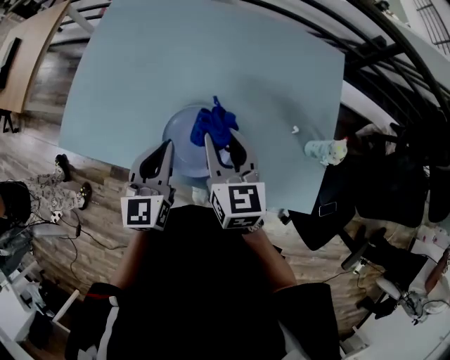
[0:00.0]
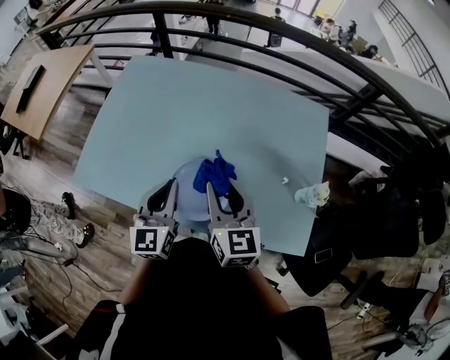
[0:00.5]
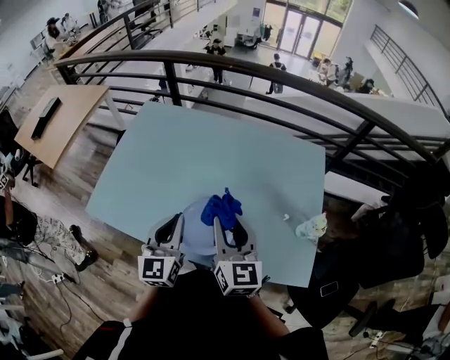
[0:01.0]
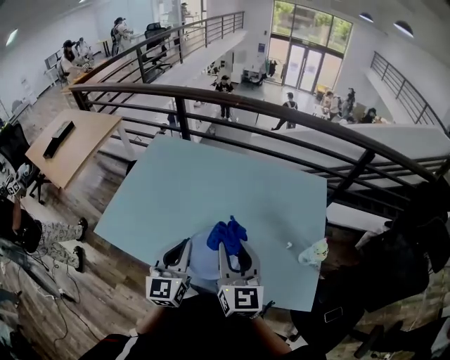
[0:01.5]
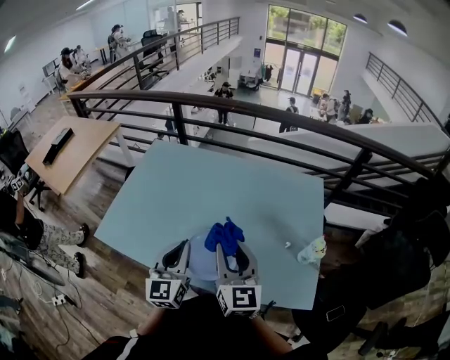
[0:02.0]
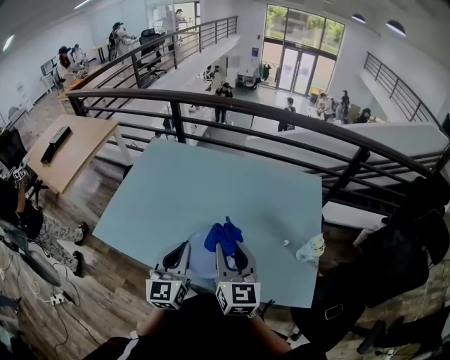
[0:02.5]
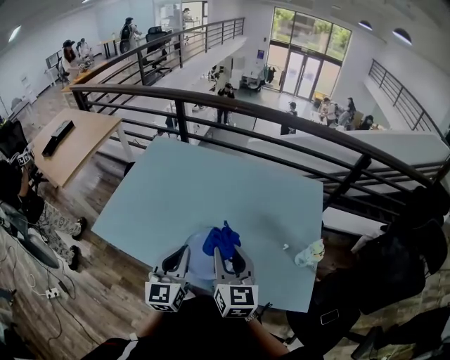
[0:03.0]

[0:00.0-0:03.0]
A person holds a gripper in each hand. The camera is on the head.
0:00.0 to 0:01.5: The right gripper is displaced upward and backward by about 15 cm, and turns by about 20 degrees. The left gripper moves upward, about 10 cm.
0:01.5 to 0:03.0: The grippers move only a little.

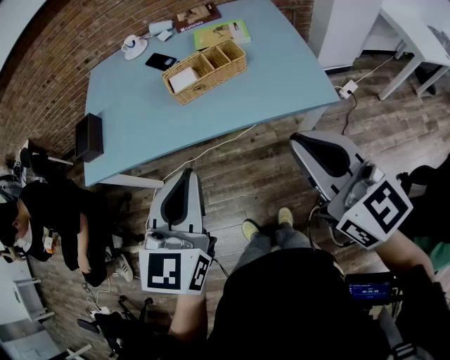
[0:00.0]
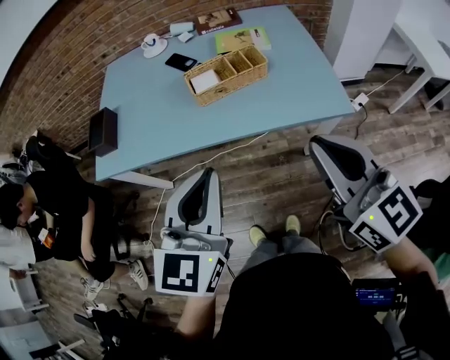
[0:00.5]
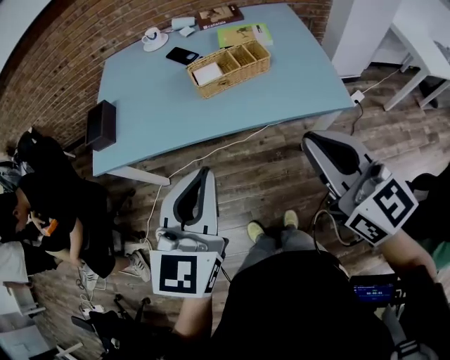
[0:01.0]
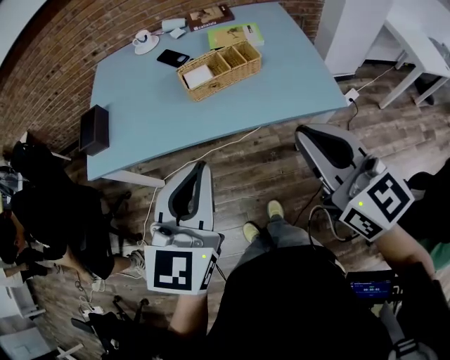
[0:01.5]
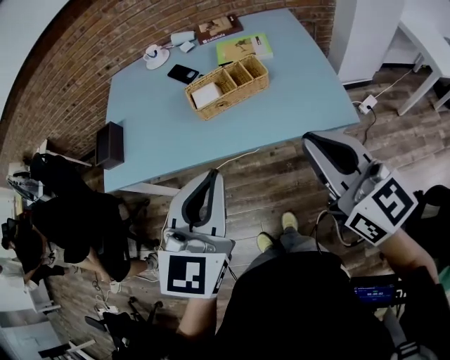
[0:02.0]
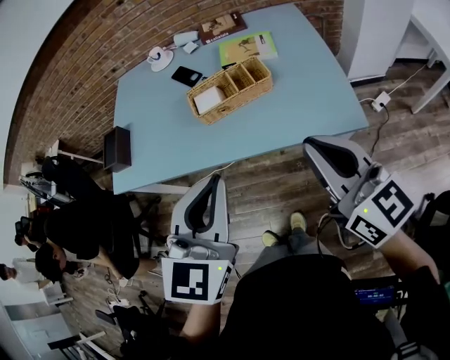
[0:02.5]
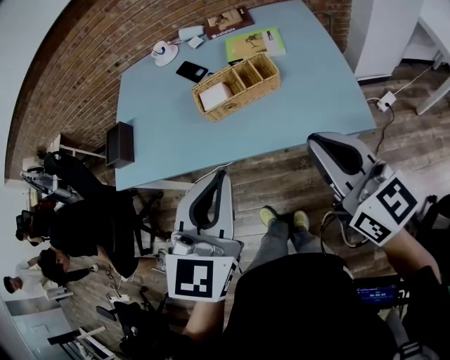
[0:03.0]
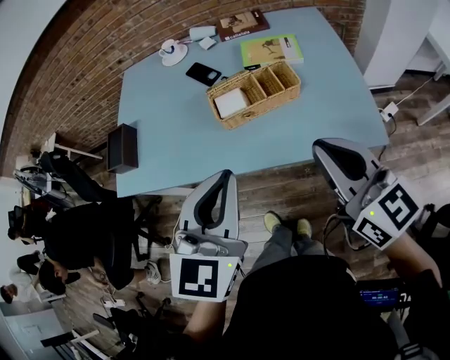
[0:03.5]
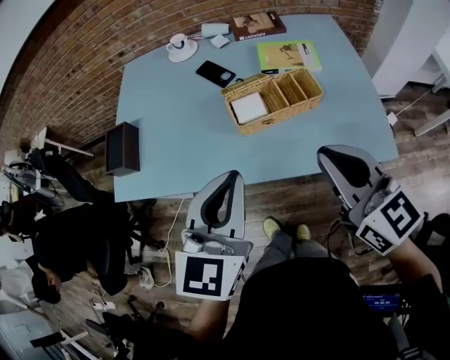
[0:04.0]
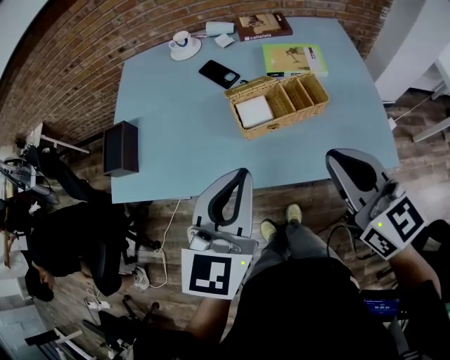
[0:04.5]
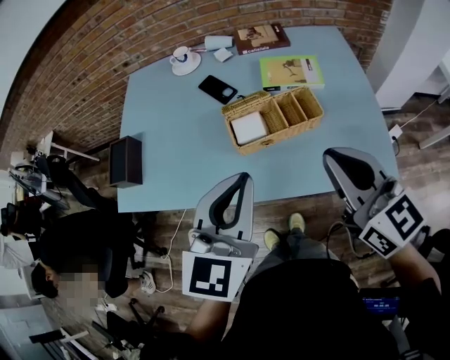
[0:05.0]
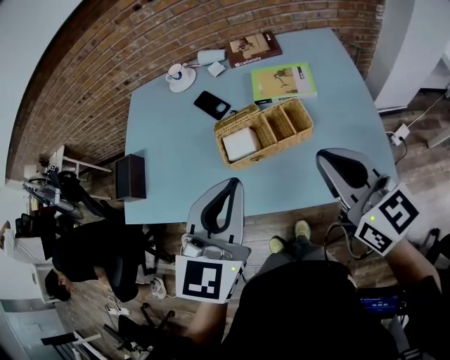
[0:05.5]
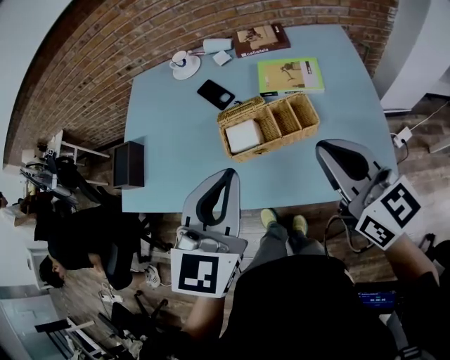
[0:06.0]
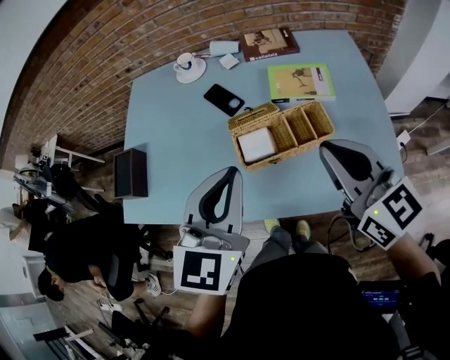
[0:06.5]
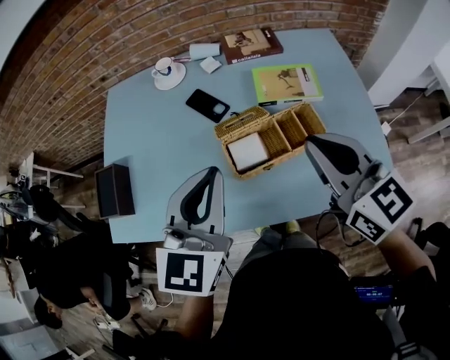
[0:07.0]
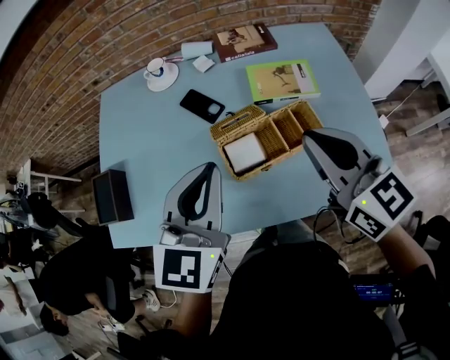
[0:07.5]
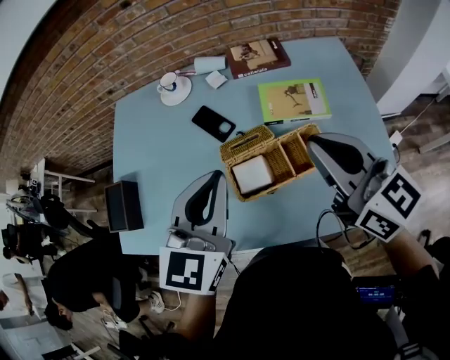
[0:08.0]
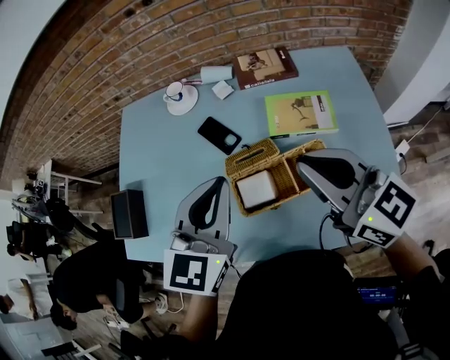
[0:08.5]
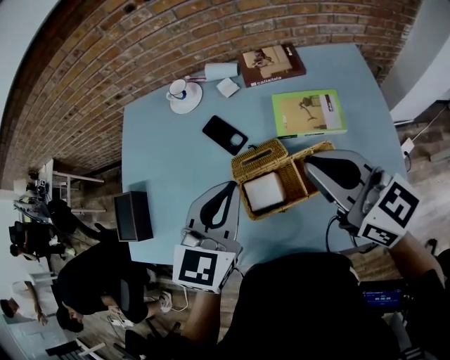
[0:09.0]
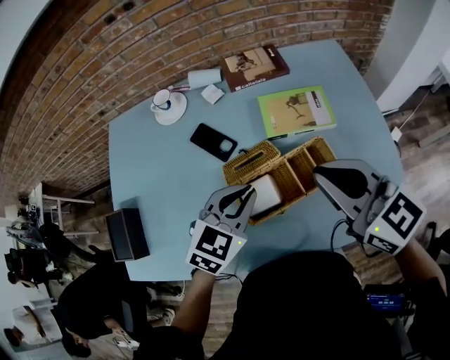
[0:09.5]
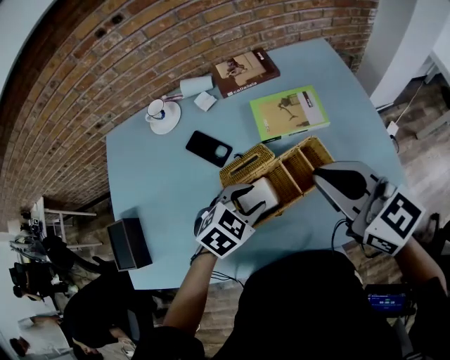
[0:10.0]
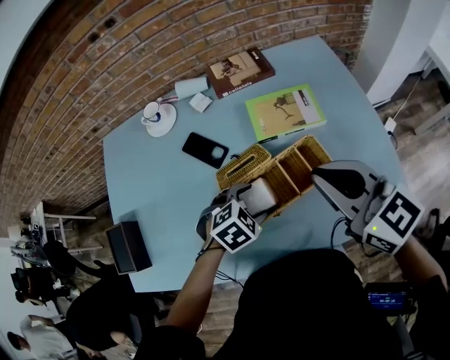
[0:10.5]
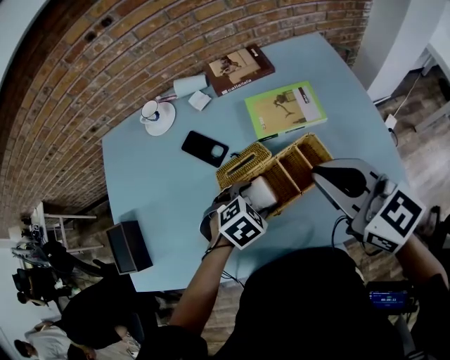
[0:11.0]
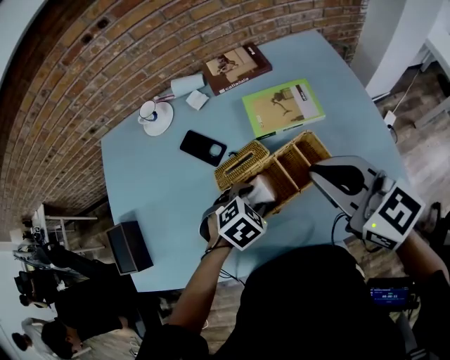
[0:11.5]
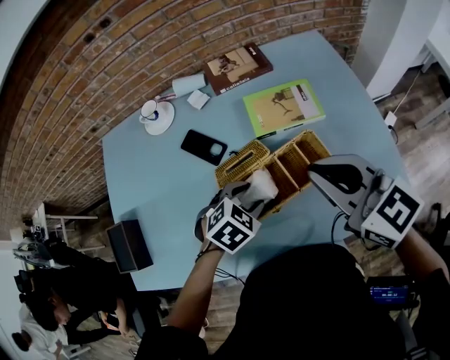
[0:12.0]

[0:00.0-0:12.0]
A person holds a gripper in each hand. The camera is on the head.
0:00.0 to 0:02.0: The right gripper goes approximately 5 cm forward; the left gripper moves approximately 5 cm to the left and comes back.
0:02.0 to 0:04.0: Both grippers move forward and to the left, about 15 cm.
0:04.0 to 0:06.0: Both grippers travel together to the right and forward, some 10 cm.
0:06.0 to 0:08.0: Both grippers travel together forward, some 15 cm.
0:08.0 to 0:10.0: The left gripper heads downward, covering some 20 cm, points its fingers about 40 degrees further downward, and opens its fingers, while the right gripper goes some 5 cm downward.

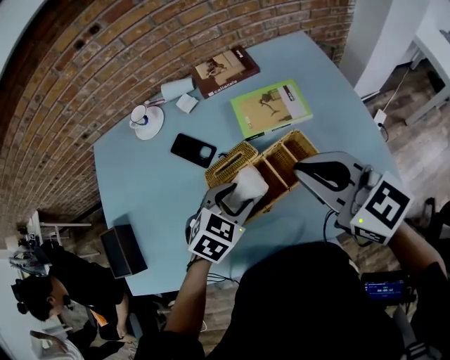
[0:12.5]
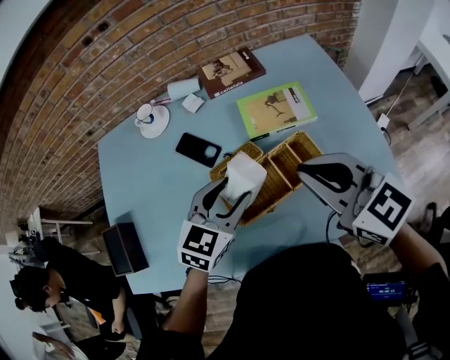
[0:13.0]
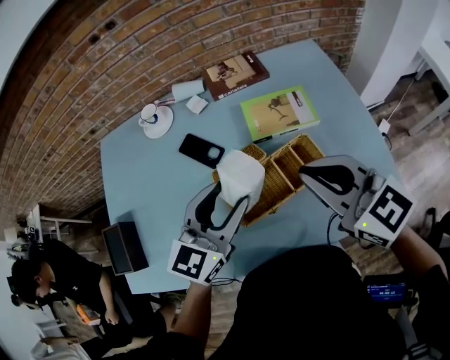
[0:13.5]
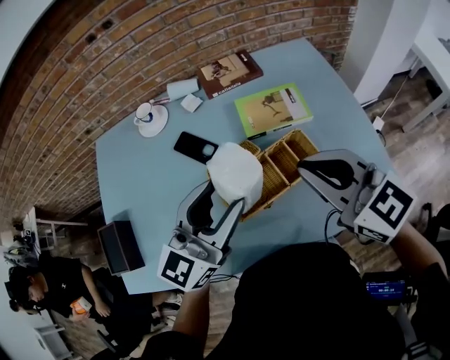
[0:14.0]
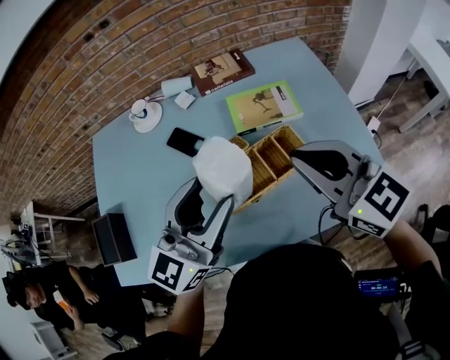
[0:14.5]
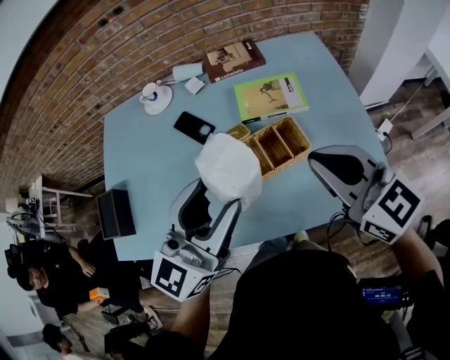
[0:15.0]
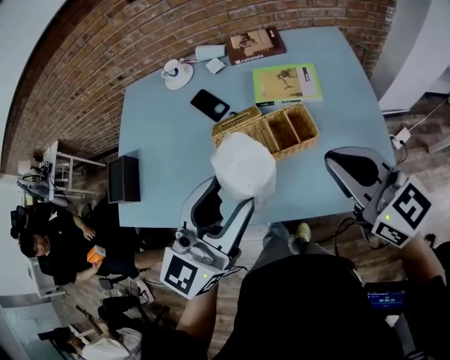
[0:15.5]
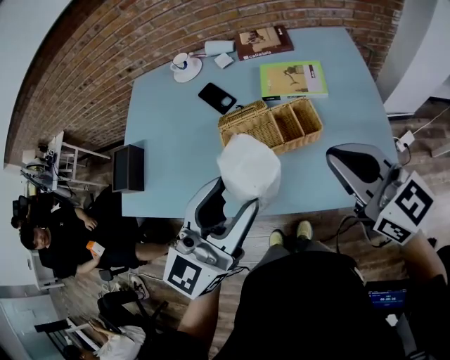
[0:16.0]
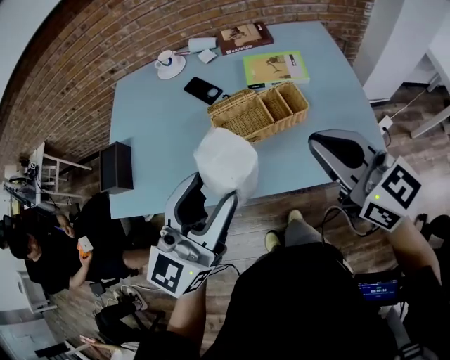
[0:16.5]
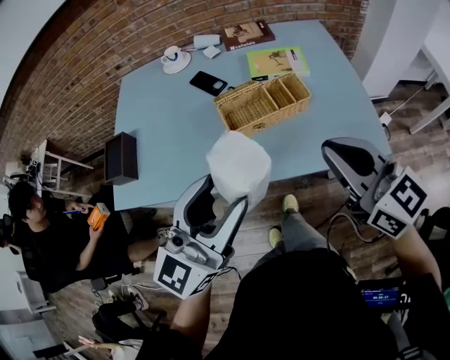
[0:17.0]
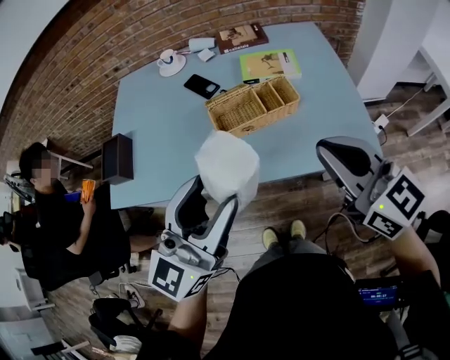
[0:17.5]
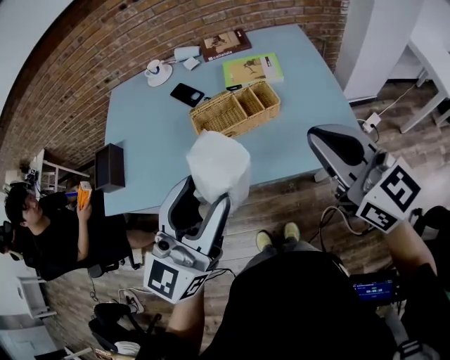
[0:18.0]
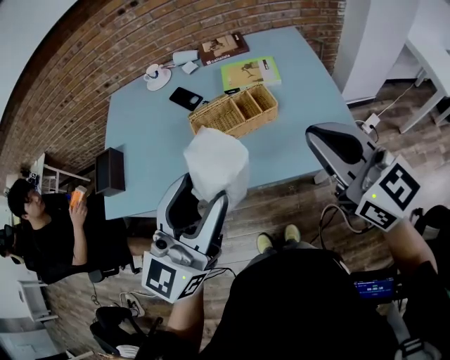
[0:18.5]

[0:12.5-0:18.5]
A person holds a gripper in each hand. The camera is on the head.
0:12.5 to 0:14.5: The left gripper shifts some 20 cm upward, and angles its fingers upward, by some 60 degrees.
0:14.5 to 0:16.5: The two grippers go roughly 15 cm backward.
0:16.5 to 0:18.5: The right gripper travels to the right and backward by approximately 10 cm; the left gripper moves backward and to the right, some 10 cm.

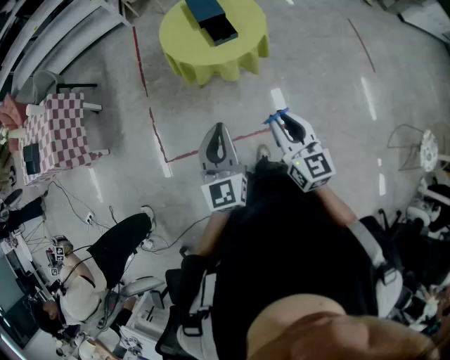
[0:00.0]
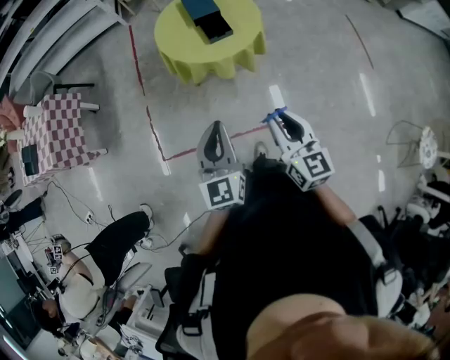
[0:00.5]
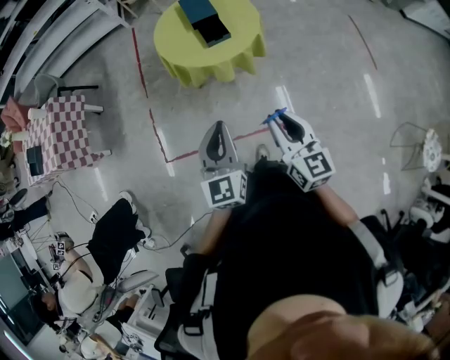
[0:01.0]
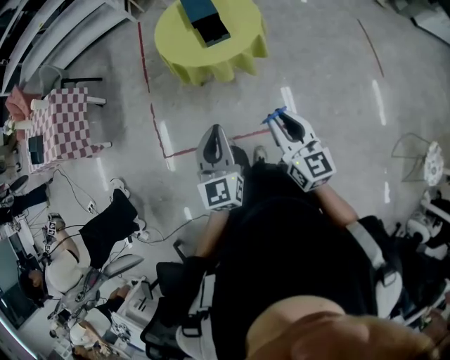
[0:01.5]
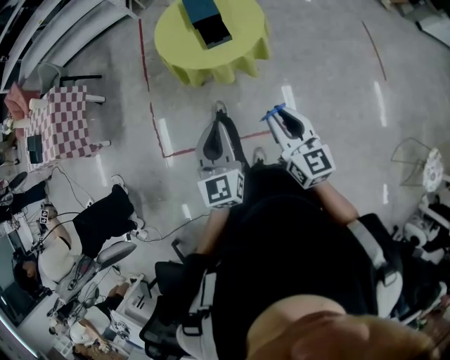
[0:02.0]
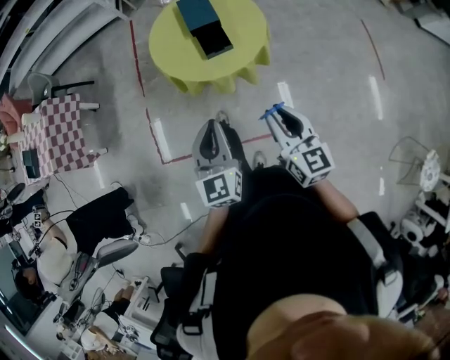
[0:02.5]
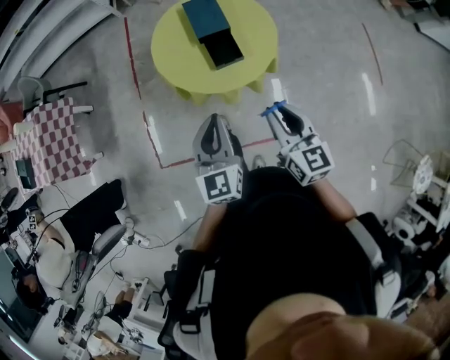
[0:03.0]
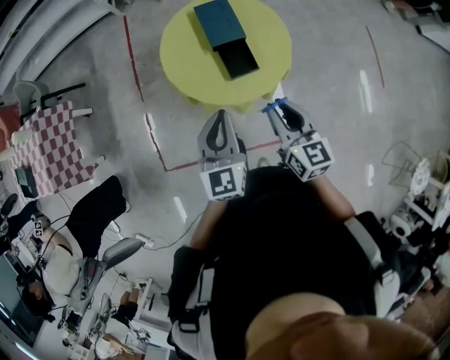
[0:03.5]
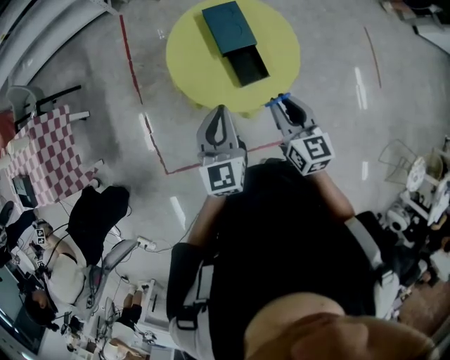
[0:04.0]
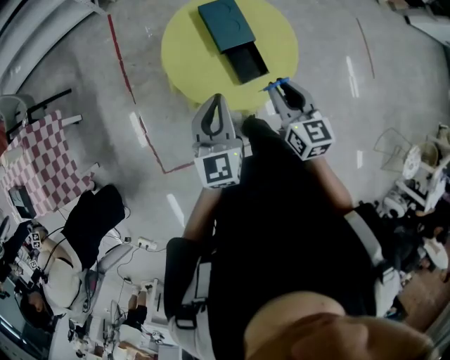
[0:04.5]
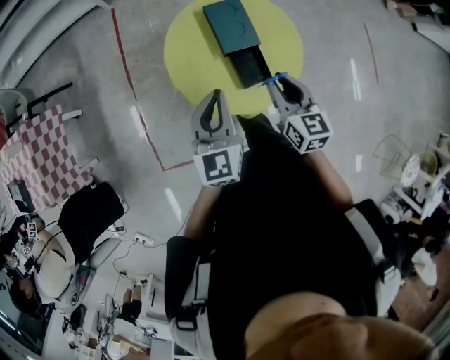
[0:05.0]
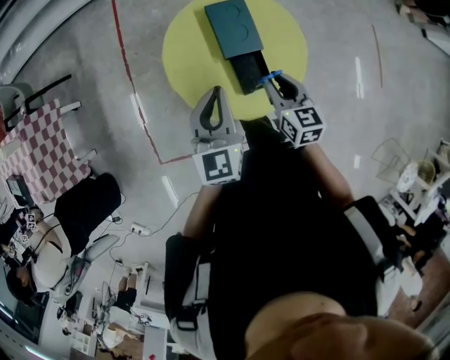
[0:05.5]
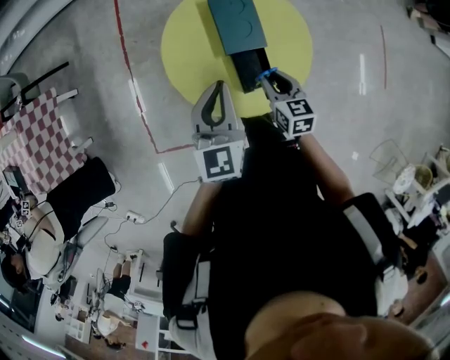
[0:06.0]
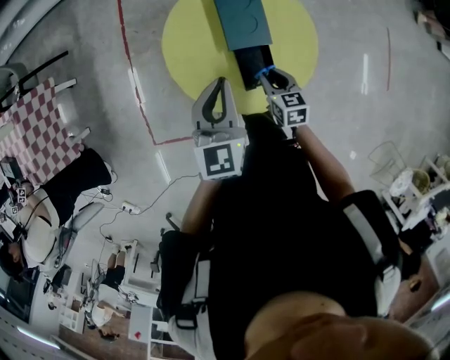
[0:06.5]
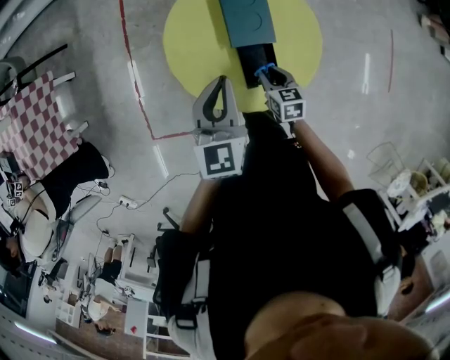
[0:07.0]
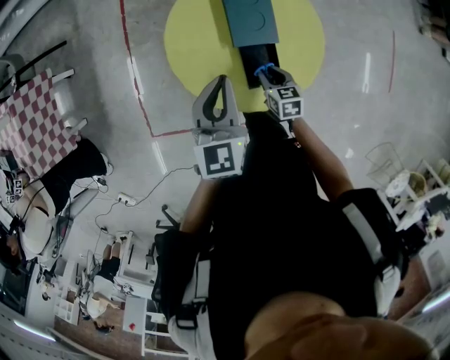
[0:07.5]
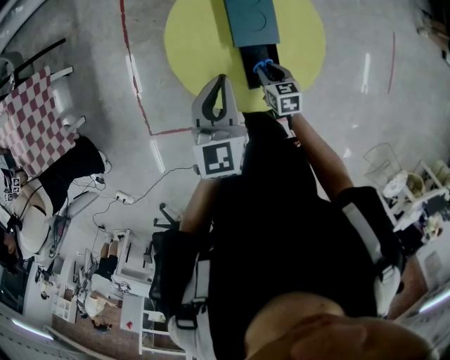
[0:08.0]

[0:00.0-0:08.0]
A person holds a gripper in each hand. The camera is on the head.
0:00.0 to 0:02.0: The right gripper moves to the right and forward, about 10 cm. Meanwhile the left gripper moves to the right, about 10 cm.
0:02.0 to 0:04.0: The two grippers go some 35 cm forward.
0:04.0 to 0:06.0: The right gripper goes about 20 cm forward and downward. The left gripper is displaced forward by some 15 cm.
0:06.0 to 0:08.0: The right gripper goes about 15 cm downward.
